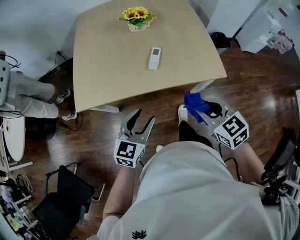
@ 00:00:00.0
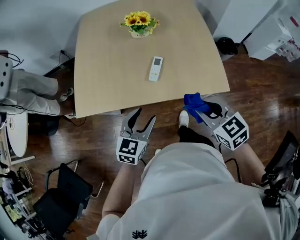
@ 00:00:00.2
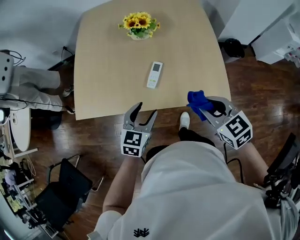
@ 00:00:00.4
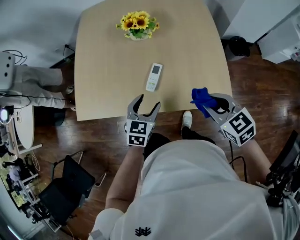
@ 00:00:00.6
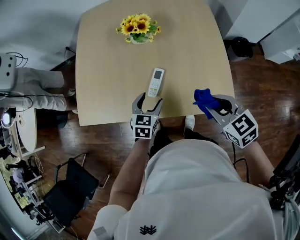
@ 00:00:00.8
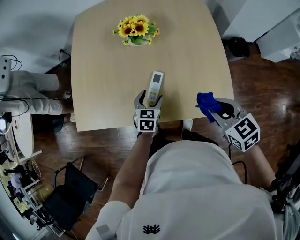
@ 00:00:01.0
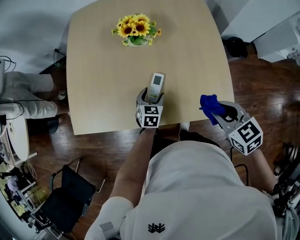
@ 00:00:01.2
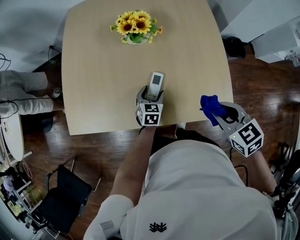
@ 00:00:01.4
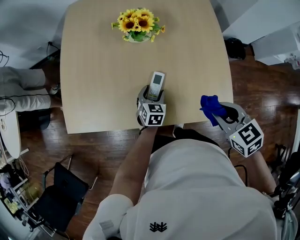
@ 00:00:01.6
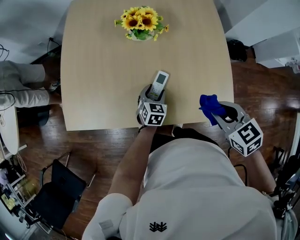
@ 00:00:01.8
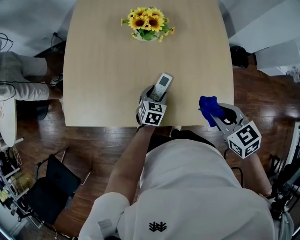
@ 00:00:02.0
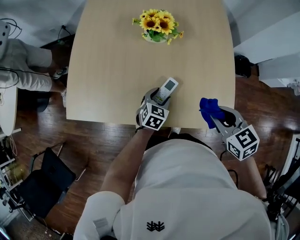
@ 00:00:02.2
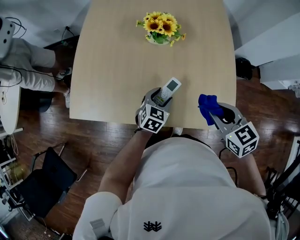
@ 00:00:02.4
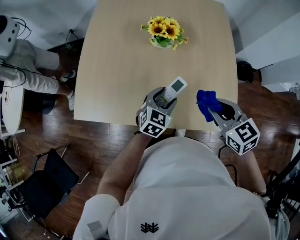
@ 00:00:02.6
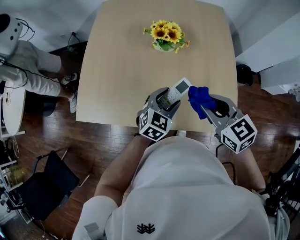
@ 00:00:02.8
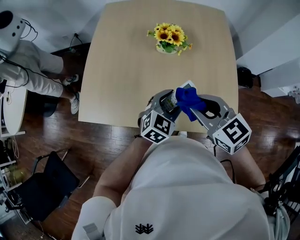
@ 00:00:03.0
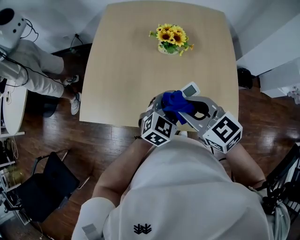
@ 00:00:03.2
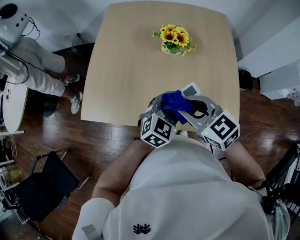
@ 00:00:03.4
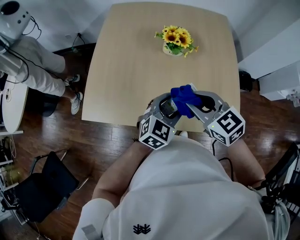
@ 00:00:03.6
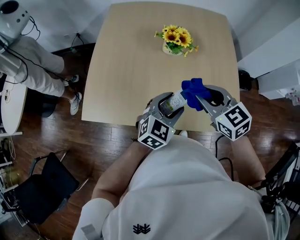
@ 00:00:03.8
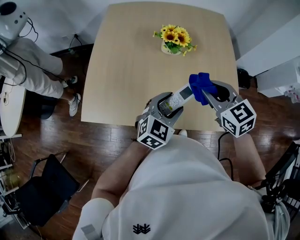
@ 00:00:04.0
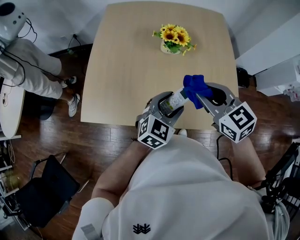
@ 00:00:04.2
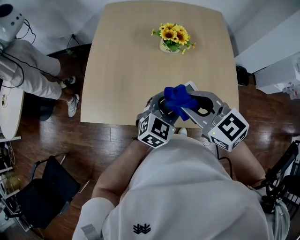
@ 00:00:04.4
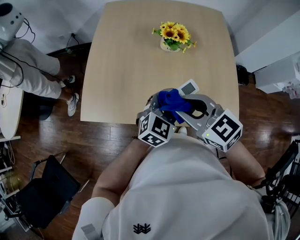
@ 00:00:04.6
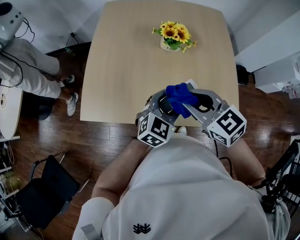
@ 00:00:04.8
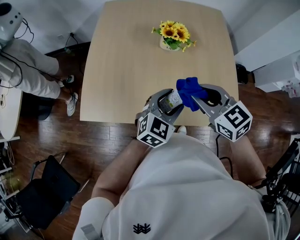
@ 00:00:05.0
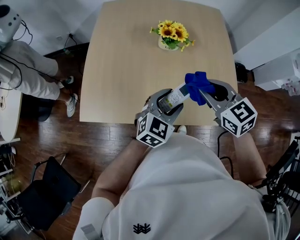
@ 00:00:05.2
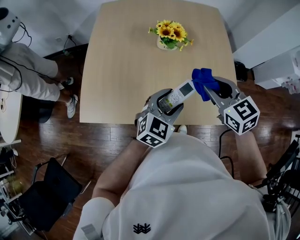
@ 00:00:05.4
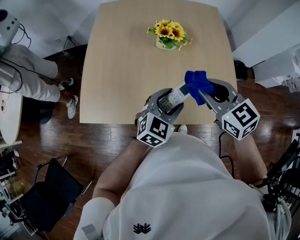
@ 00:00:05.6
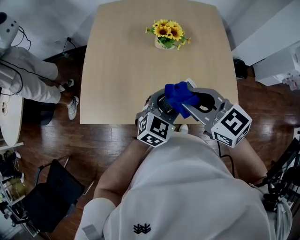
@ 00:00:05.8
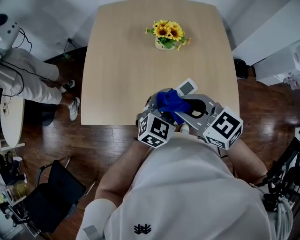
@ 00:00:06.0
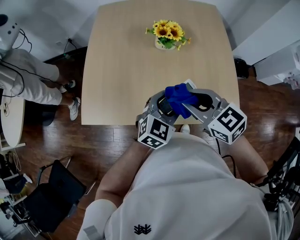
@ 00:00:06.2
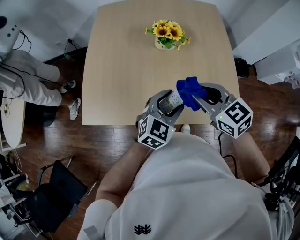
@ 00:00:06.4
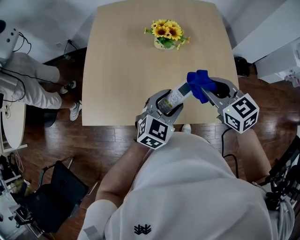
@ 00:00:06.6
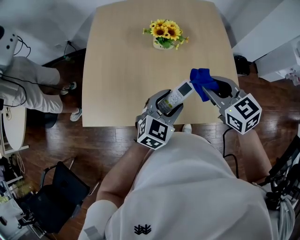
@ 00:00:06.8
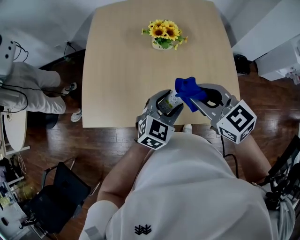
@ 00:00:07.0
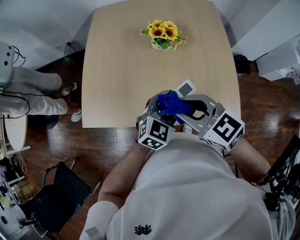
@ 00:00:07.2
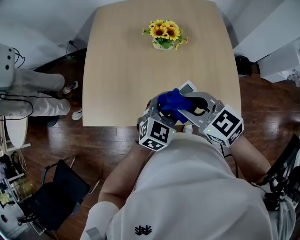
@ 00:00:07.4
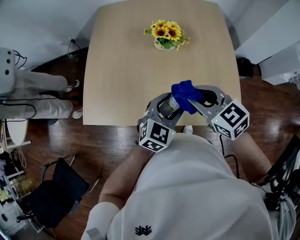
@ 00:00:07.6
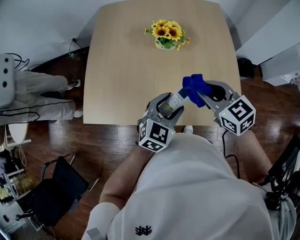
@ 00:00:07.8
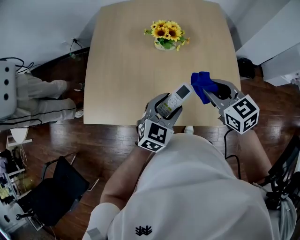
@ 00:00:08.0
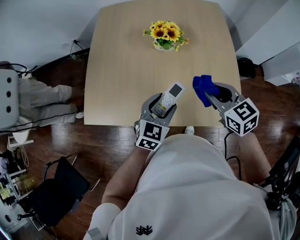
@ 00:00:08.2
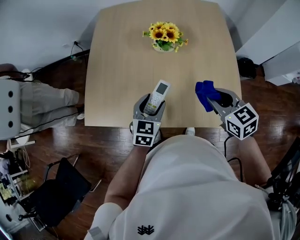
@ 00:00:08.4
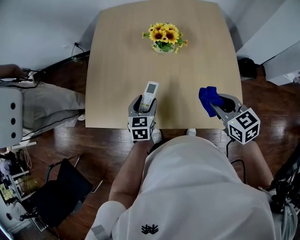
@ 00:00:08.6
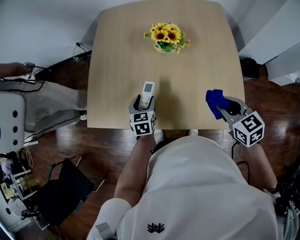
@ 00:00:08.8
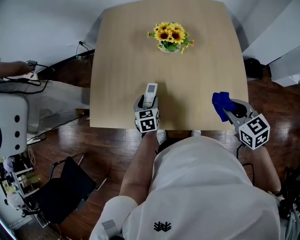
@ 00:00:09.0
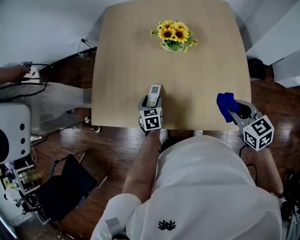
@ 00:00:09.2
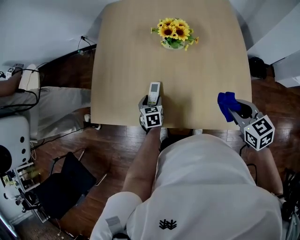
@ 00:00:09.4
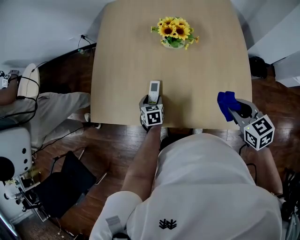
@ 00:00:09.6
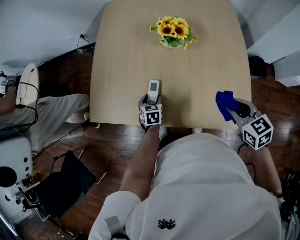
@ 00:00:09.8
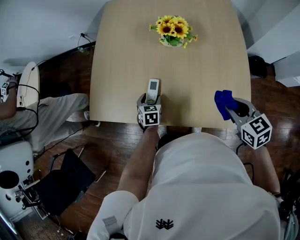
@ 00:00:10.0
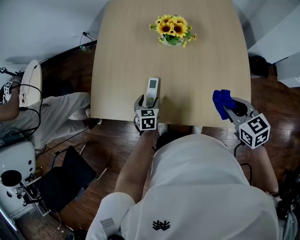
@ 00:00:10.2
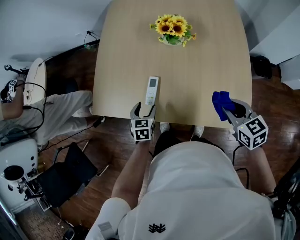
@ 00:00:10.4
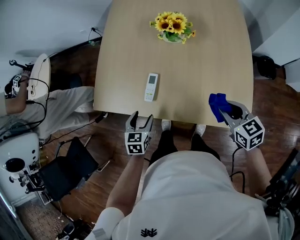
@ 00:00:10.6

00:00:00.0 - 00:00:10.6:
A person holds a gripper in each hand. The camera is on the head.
00:00:00.0 - 00:00:01.6: The left gripper goes some 40 cm forward, downward and to the right, and turns by about 30 degrees; the right gripper shifts roughly 25 cm forward and to the right.
00:00:01.6 - 00:00:03.0: The left gripper heads upward, covering some 20 cm, and changes its angle by roughly 30 degrees; the right gripper travels to the left and upward by some 20 cm, and swivels about 20 degrees.
00:00:03.0 - 00:00:04.6: The left gripper changes place by about 5 cm, while the right gripper moves left and right over roughly 10 cm, changing direction 2 times.
00:00:04.6 - 00:00:06.0: The right gripper reaches some 10 cm to the right, then returns.
00:00:06.0 - 00:00:07.6: The right gripper swings left and right, some 10 cm each way, with 2 reversals.
00:00:07.6 - 00:00:09.0: The right gripper is displaced to the right and downward by about 15 cm, while the left gripper goes some 20 cm downward, to the left and forward, and swivels some 50 degrees.
00:00:09.0 - 00:00:10.6: The left gripper heads backward, covering roughly 15 cm; the right gripper changes place by about 5 cm.

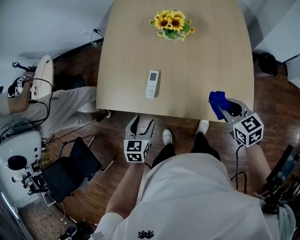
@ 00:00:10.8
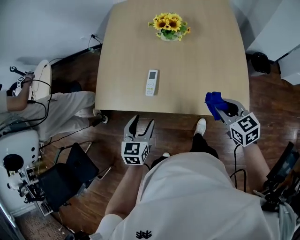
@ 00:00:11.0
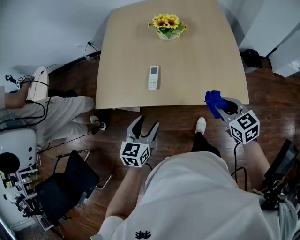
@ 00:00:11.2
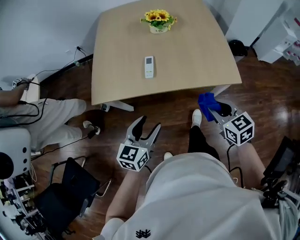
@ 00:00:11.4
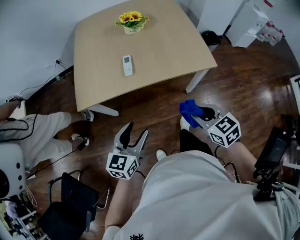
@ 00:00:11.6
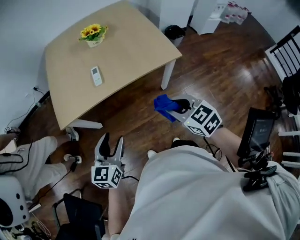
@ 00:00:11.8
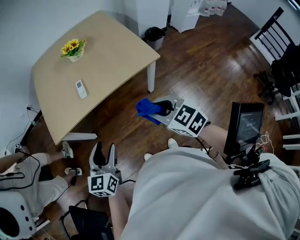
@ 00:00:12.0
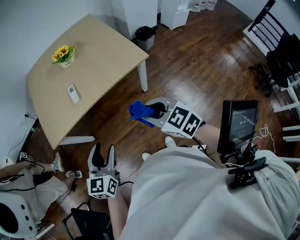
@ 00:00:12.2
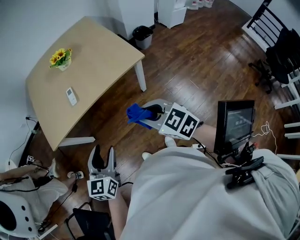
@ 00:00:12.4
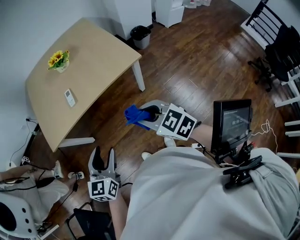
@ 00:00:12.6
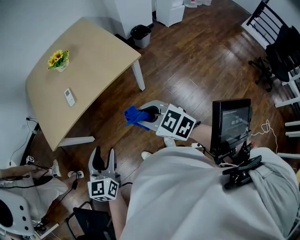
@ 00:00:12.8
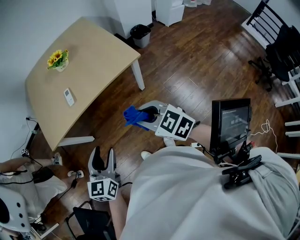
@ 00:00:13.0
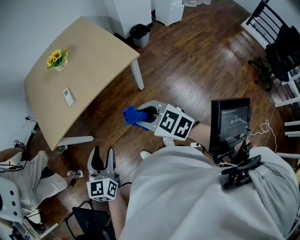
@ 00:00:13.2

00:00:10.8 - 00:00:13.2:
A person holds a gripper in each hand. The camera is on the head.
00:00:10.8 - 00:00:12.0: The left gripper changes place by about 30 cm, and swivels approximately 40 degrees. The right gripper changes place by some 40 cm.
00:00:12.0 - 00:00:13.2: The left gripper goes approximately 5 cm to the right.

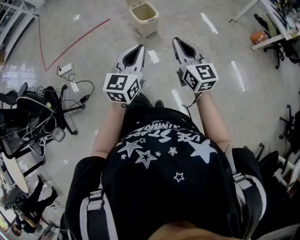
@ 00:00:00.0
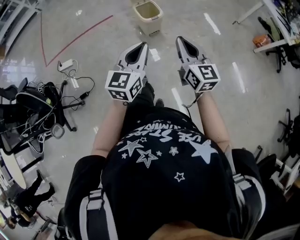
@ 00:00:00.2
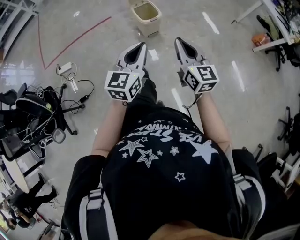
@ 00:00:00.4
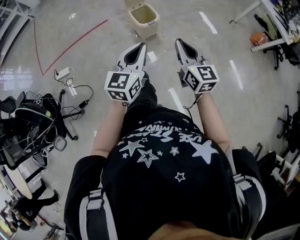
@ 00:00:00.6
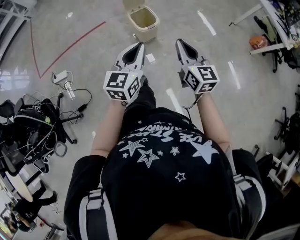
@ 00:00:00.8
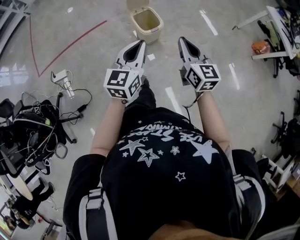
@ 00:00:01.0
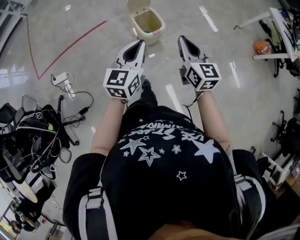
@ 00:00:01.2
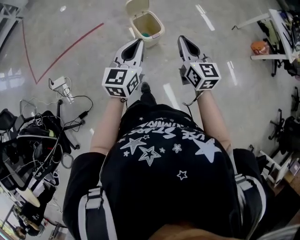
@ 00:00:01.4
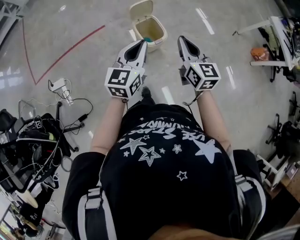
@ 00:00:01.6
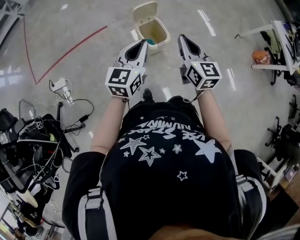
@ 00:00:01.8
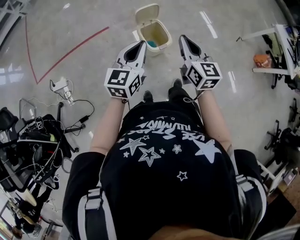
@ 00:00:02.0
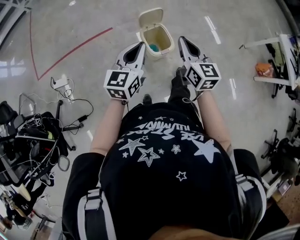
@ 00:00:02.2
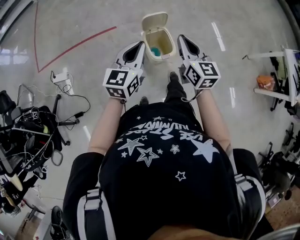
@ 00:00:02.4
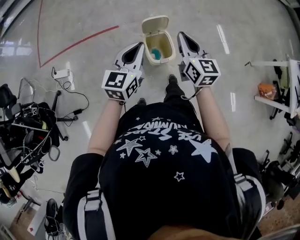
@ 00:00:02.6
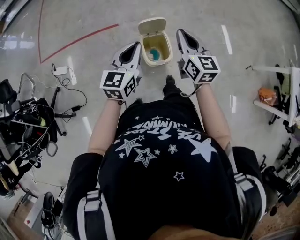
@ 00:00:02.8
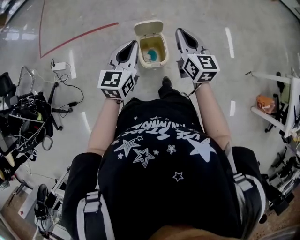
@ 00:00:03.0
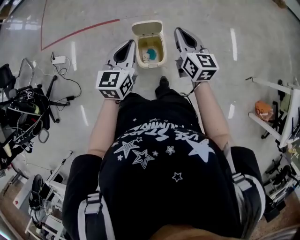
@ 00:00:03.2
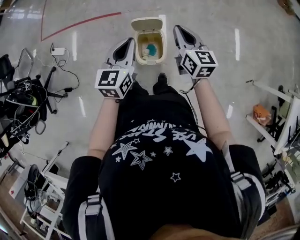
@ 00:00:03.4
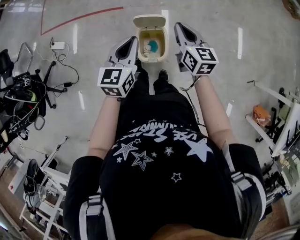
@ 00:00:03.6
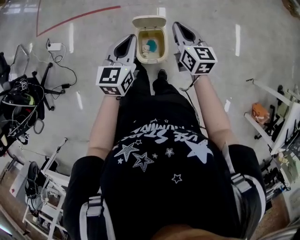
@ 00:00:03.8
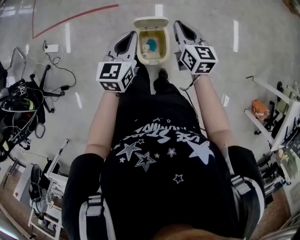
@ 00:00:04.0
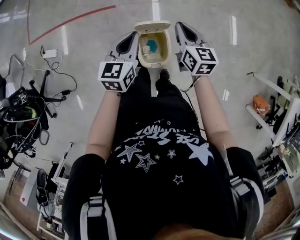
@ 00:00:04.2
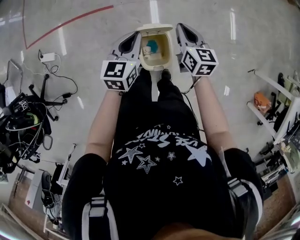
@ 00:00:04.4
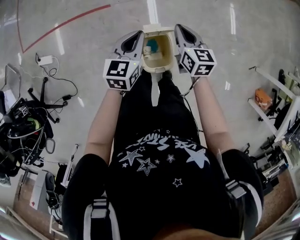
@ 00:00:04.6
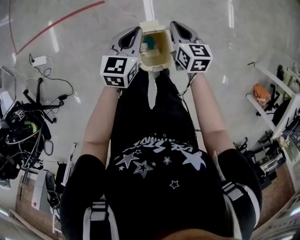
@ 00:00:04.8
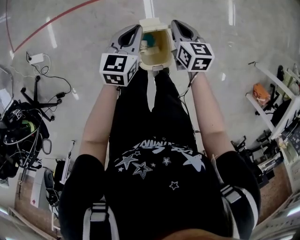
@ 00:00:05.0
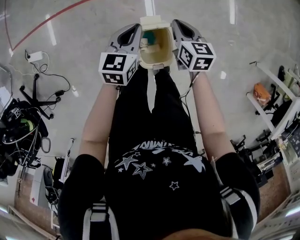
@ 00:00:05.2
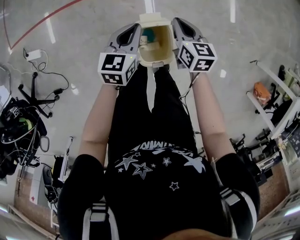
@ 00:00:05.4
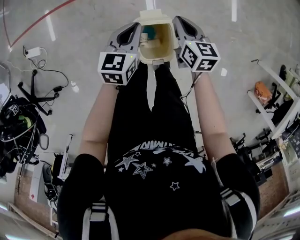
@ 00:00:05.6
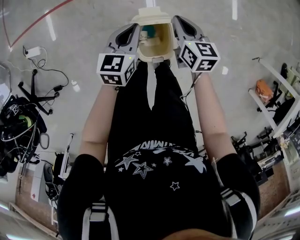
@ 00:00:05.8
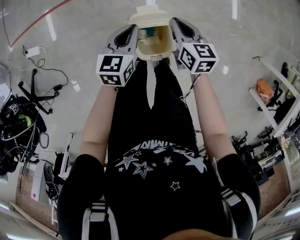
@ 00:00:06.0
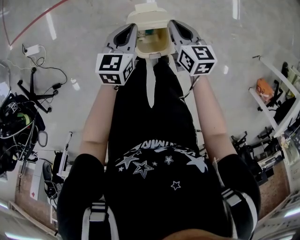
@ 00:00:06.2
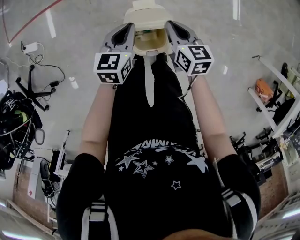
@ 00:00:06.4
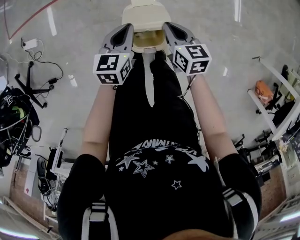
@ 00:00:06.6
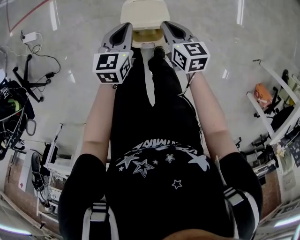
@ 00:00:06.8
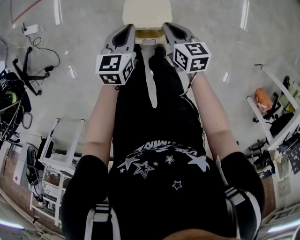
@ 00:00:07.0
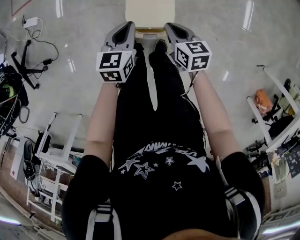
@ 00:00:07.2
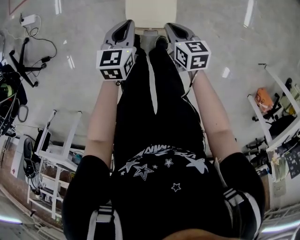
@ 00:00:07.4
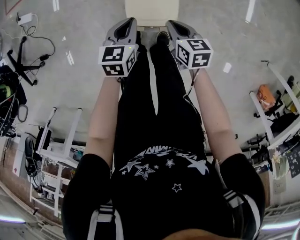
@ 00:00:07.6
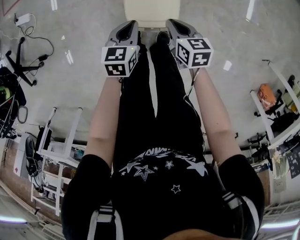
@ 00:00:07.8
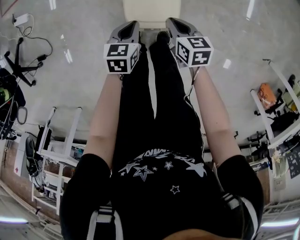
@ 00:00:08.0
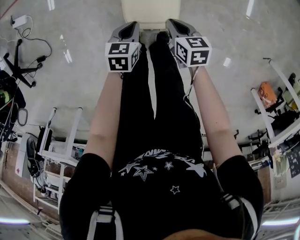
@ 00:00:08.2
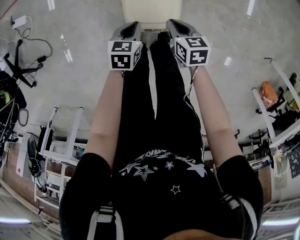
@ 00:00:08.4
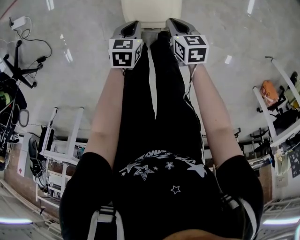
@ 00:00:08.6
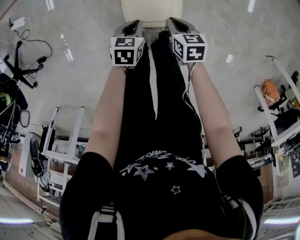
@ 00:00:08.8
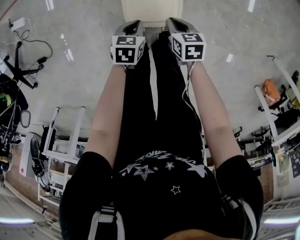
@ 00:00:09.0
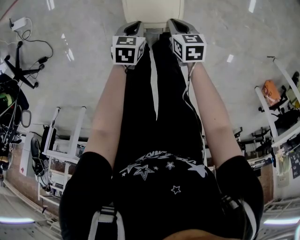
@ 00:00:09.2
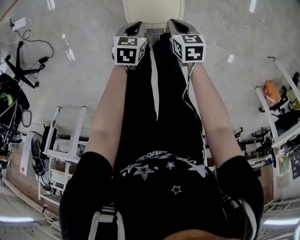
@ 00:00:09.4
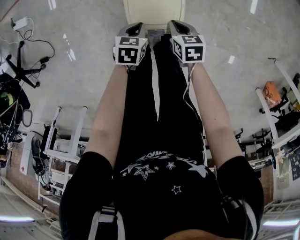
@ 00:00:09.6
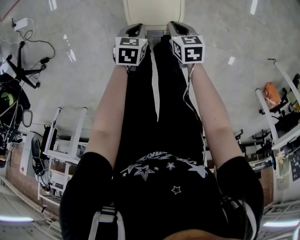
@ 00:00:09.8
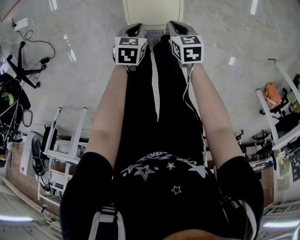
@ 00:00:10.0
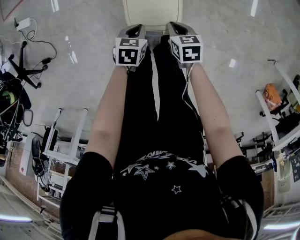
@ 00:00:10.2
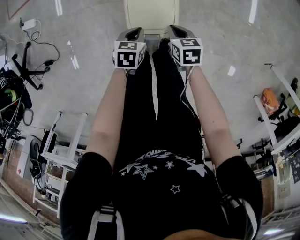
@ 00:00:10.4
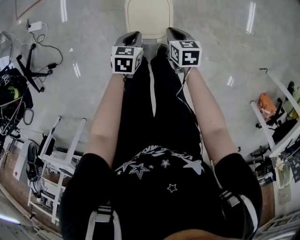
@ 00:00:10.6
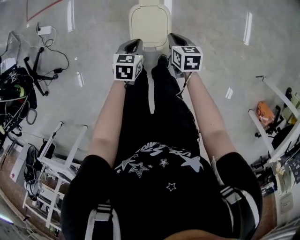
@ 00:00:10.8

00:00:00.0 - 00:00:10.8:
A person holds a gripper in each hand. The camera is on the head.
00:00:00.0 - 00:00:01.6: Both grippers move forward, about 35 cm.
00:00:01.6 - 00:00:03.0: Both grippers move forward, some 25 cm. The left gripper changes its angle by about 20 degrees; the right gripper swivels about 20 degrees.
00:00:03.0 - 00:00:04.6: The right gripper moves downward and forward, some 25 cm, while the left gripper shifts about 25 cm forward and downward.
00:00:04.6 - 00:00:06.2: The left gripper heads downward, covering some 10 cm, while the right gripper heads downward and backward, covering about 10 cm.
00:00:06.2 - 00:00:07.8: The two grippers go about 20 cm backward and downward.
00:00:07.8 - 00:00:09.2: The two grippers go about 10 cm downward.
00:00:09.2 - 00:00:10.8: The two grippers go approximately 15 cm upward.
